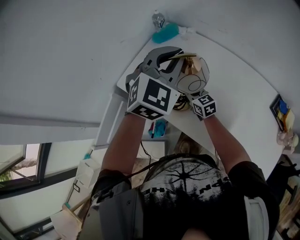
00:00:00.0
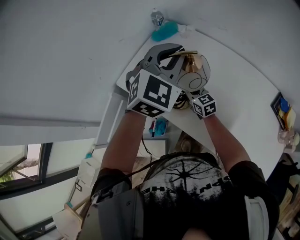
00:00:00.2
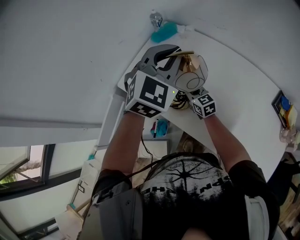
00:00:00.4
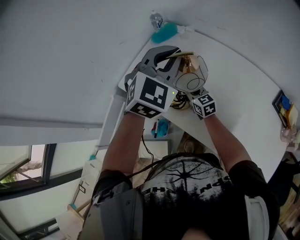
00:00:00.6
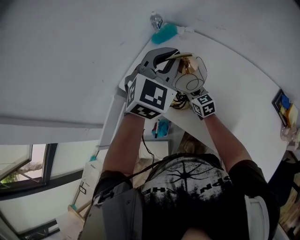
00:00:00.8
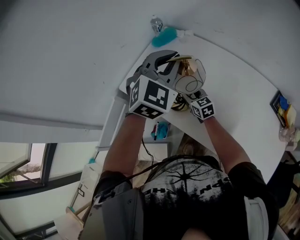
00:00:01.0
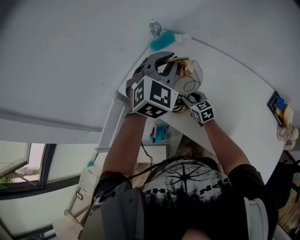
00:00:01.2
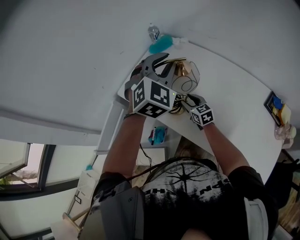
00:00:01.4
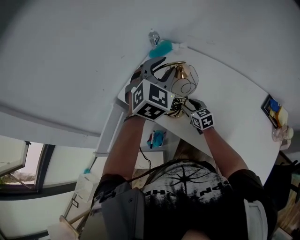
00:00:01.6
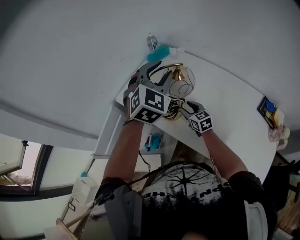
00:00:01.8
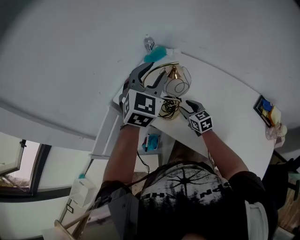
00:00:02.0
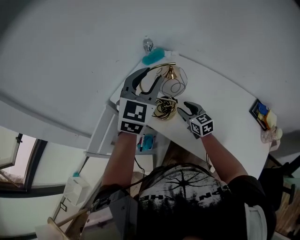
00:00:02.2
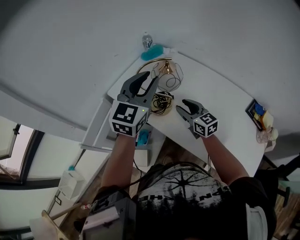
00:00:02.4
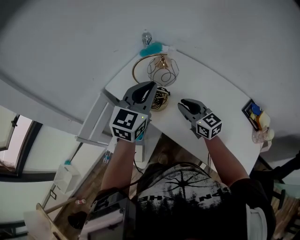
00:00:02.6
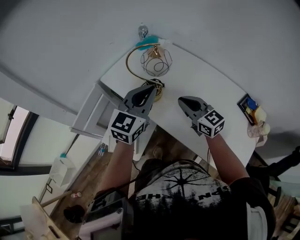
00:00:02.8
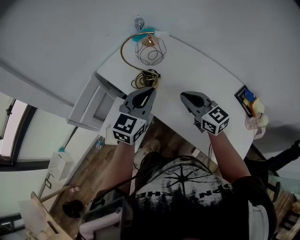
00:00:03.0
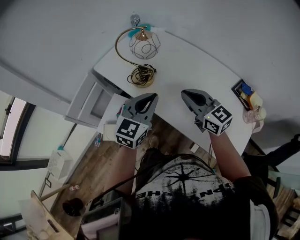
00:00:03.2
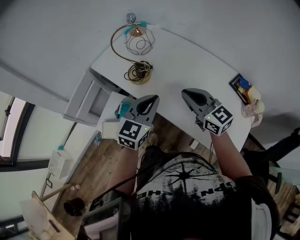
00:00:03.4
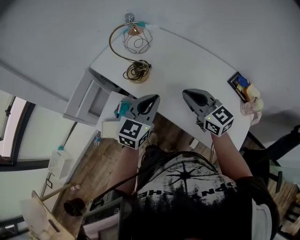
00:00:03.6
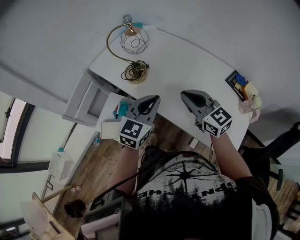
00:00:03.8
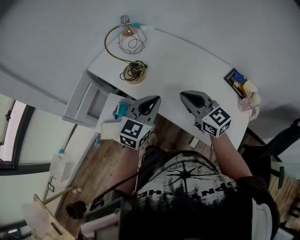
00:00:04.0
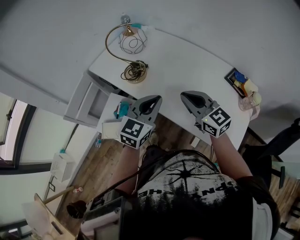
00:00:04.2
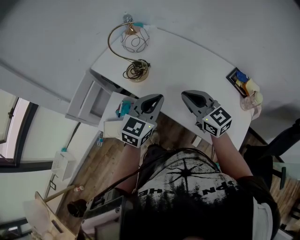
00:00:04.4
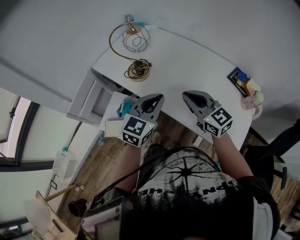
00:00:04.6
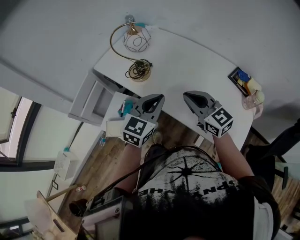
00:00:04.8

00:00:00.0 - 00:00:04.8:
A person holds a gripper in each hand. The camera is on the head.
00:00:00.0 - 00:00:01.6: The left gripper opens up; the right gripper shifts by approximately 5 cm, and opens up.
00:00:01.6 - 00:00:03.2: The left gripper is displaced backward by roughly 25 cm, swivels about 40 degrees, and closes its fingers. Meanwhile the right gripper moves upward, backward and to the right, approximately 35 cm, rotates some 30 degrees, and closes its fingers.
00:00:03.2 - 00:00:04.8: The grippers both shift backward by roughly 5 cm.

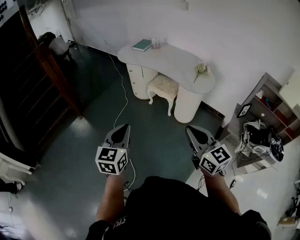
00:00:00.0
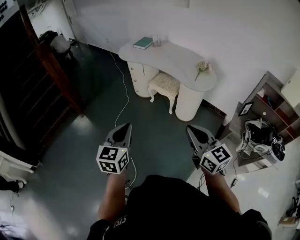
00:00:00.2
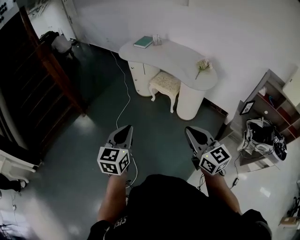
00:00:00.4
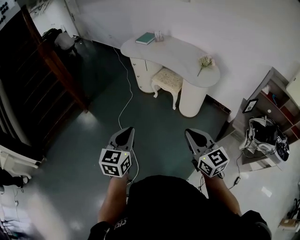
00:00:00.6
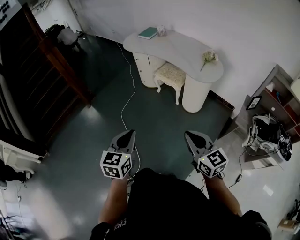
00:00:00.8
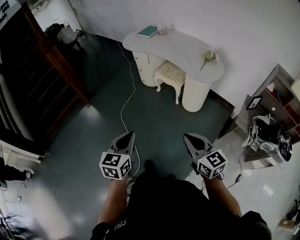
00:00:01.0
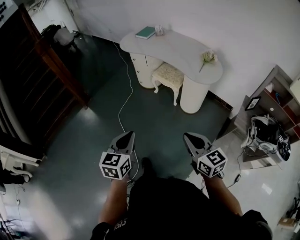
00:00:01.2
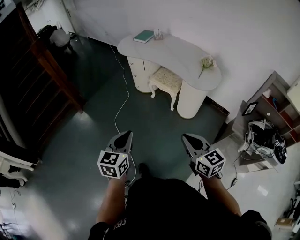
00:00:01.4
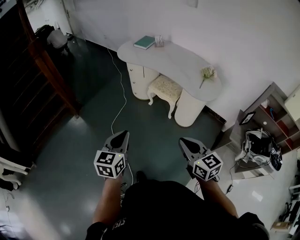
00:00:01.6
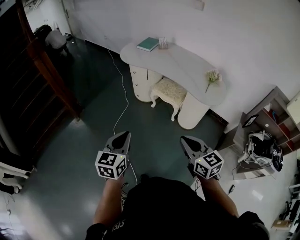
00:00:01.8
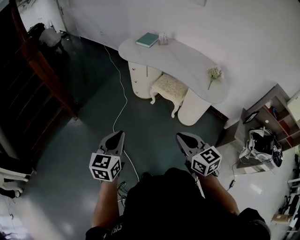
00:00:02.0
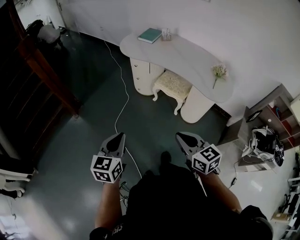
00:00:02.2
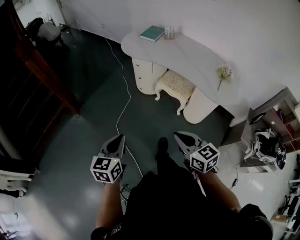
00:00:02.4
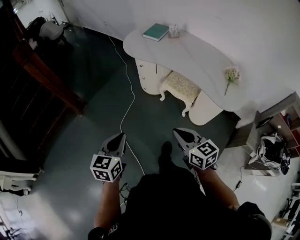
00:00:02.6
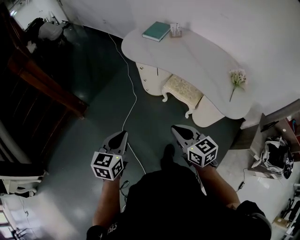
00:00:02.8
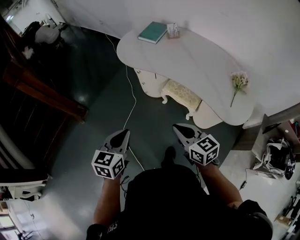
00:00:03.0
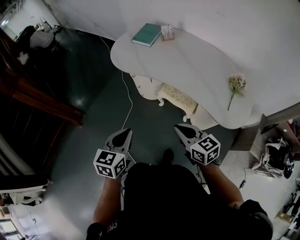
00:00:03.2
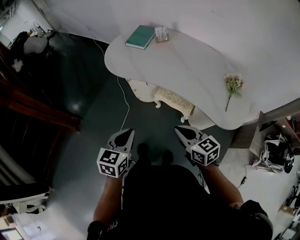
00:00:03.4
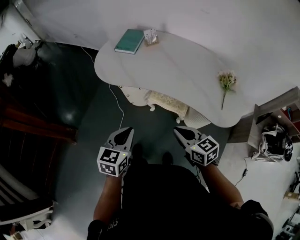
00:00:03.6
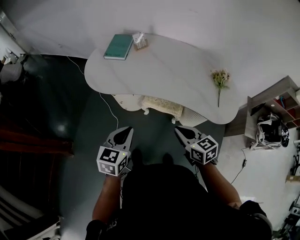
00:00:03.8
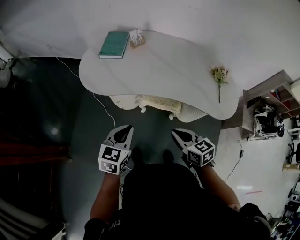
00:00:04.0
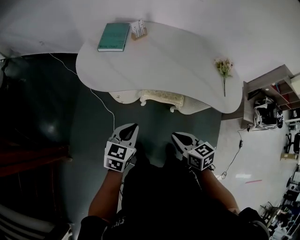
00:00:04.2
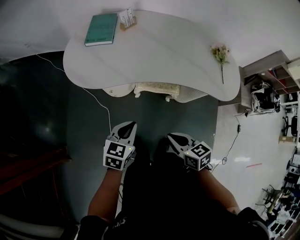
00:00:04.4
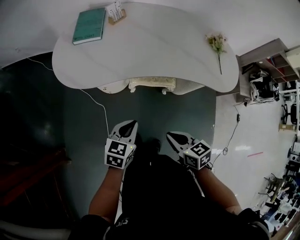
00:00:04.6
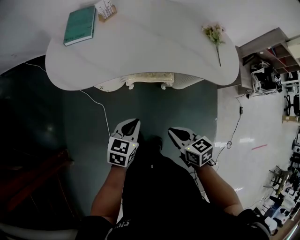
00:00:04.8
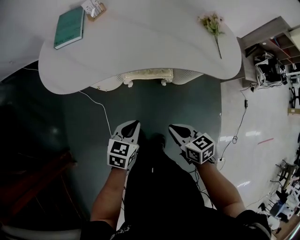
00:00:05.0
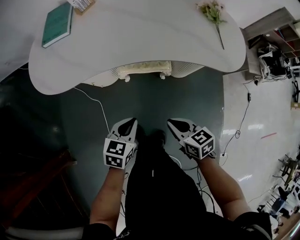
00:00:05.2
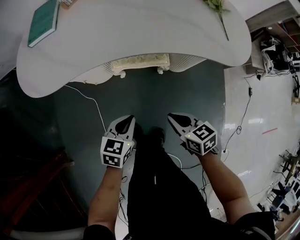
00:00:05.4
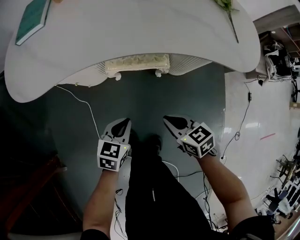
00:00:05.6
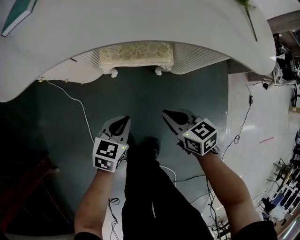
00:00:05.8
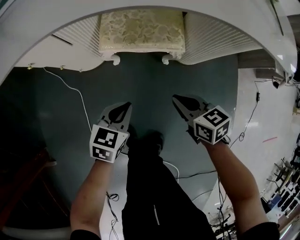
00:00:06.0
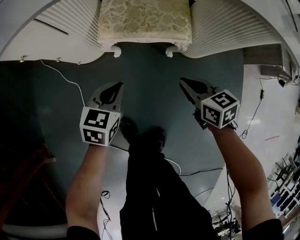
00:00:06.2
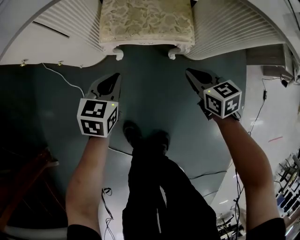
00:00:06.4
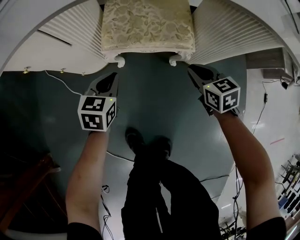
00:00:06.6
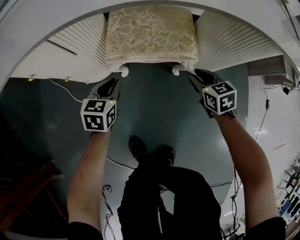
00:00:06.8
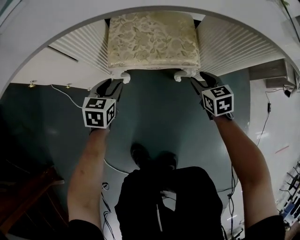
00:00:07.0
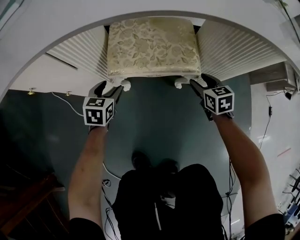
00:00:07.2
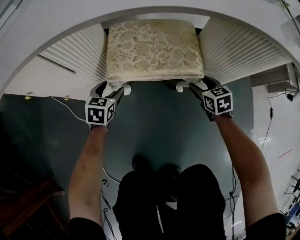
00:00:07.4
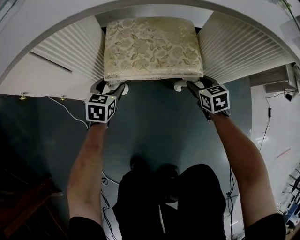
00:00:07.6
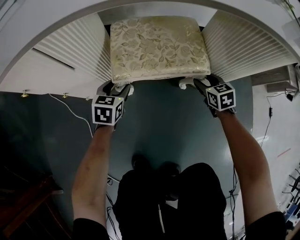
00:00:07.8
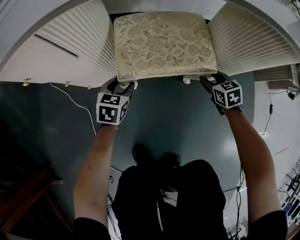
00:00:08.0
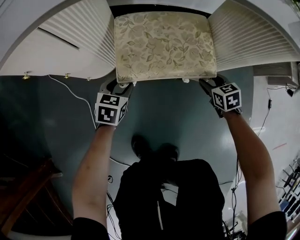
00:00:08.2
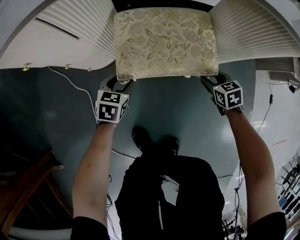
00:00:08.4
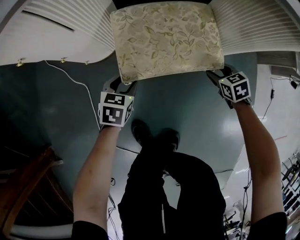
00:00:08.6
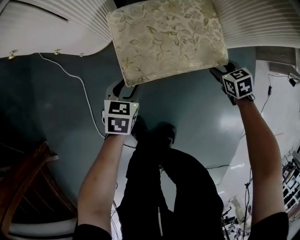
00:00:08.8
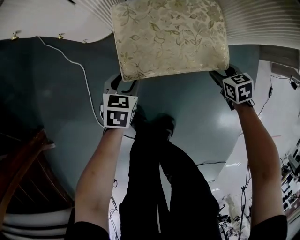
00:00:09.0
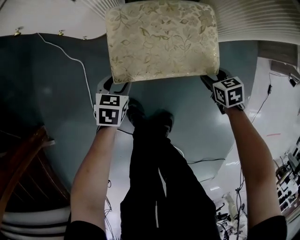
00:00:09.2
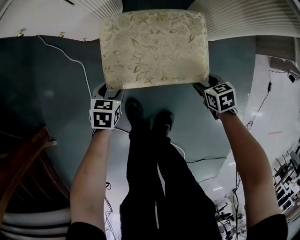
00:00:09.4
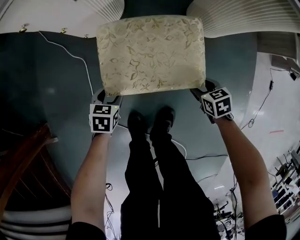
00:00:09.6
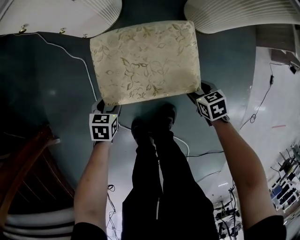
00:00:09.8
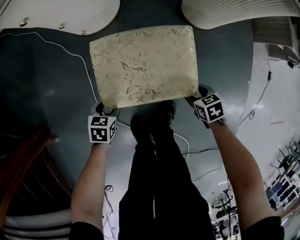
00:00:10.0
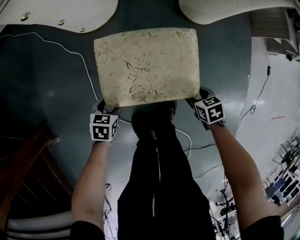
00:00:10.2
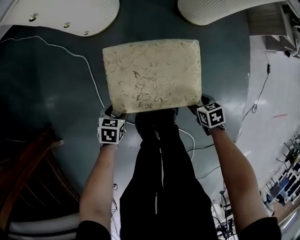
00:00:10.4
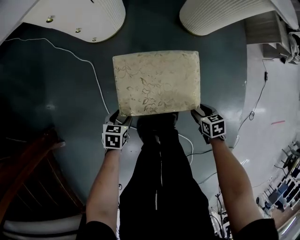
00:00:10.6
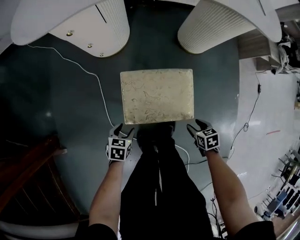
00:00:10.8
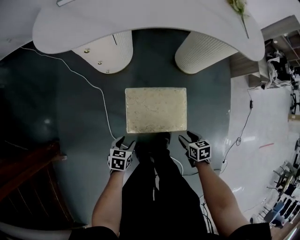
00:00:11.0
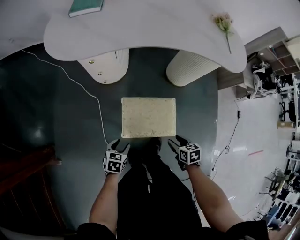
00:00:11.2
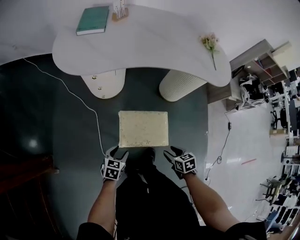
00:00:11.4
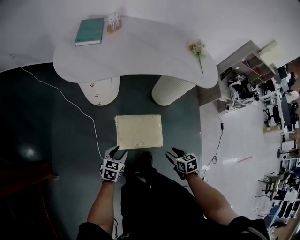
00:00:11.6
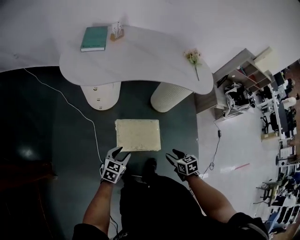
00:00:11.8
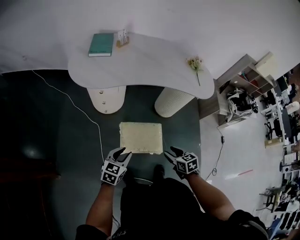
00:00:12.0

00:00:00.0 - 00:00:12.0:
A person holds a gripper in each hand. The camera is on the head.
00:00:00.0 - 00:00:01.6: The grippers both shift forward and downward by roughly 10 cm.
00:00:01.6 - 00:00:03.0: The two grippers go roughly 40 cm forward.
00:00:03.0 - 00:00:04.4: The left gripper moves about 30 cm, and changes its angle by roughly 40 degrees; the right gripper moves roughly 20 cm, and turns by approximately 40 degrees.
00:00:04.4 - 00:00:06.0: Both grippers move downward, approximately 40 cm.
00:00:06.0 - 00:00:07.6: The left gripper travels forward, downward and to the left by approximately 30 cm, and opens. Meanwhile the right gripper is displaced forward, downward and to the right by some 25 cm, turns by some 20 degrees, and opens.
00:00:07.6 - 00:00:09.0: The grippers make only small movements.
00:00:09.0 - 00:00:10.4: The left gripper swivels approximately 20 degrees, while the right gripper rotates approximately 20 degrees.
00:00:10.4 - 00:00:12.0: The grippers both shift upward by some 50 cm. The left gripper tilts its fingers some 40 degrees upward; the right gripper swivels some 20 degrees.

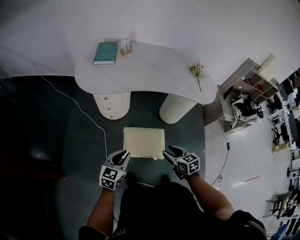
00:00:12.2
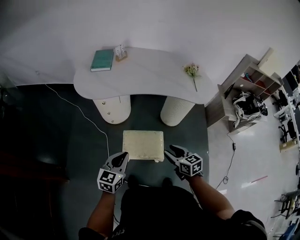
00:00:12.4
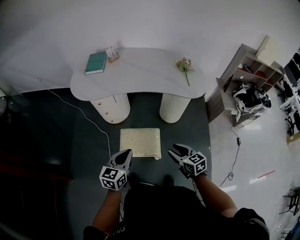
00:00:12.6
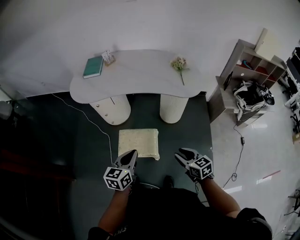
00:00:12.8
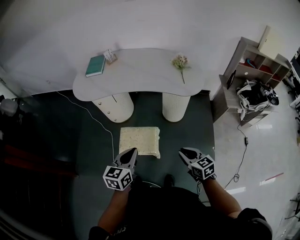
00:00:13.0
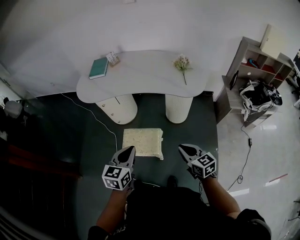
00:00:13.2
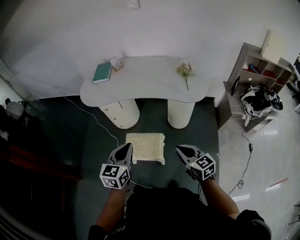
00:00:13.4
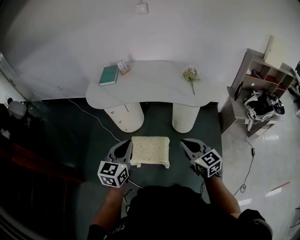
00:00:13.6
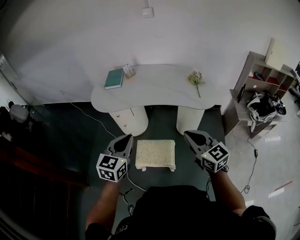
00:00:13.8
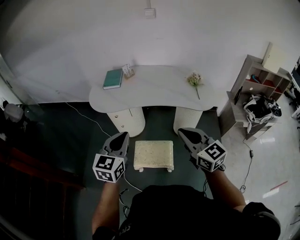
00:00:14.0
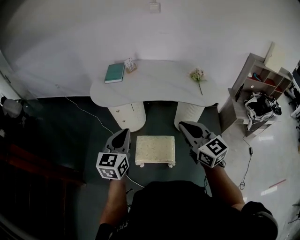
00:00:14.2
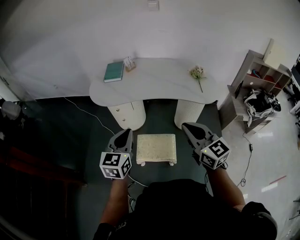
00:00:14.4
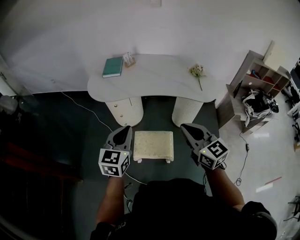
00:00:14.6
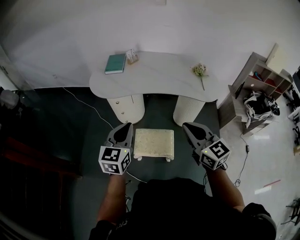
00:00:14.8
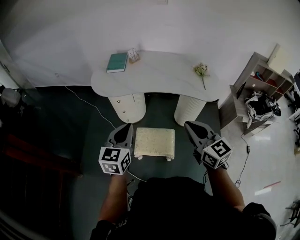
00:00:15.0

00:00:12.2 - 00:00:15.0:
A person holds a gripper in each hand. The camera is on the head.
00:00:12.2 - 00:00:13.6: The left gripper goes about 25 cm upward and to the right. The right gripper travels to the right and upward by roughly 25 cm, rotates roughly 30 degrees, and closes.
00:00:13.6 - 00:00:15.0: The right gripper travels to the left and upward by roughly 15 cm. Meanwhile the left gripper travels to the left by some 10 cm.

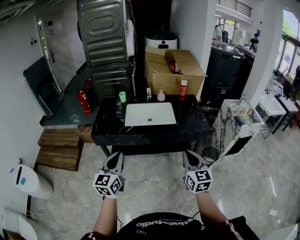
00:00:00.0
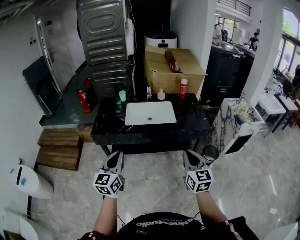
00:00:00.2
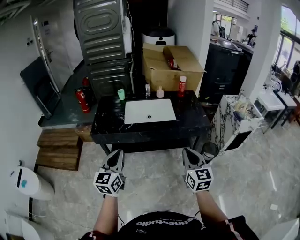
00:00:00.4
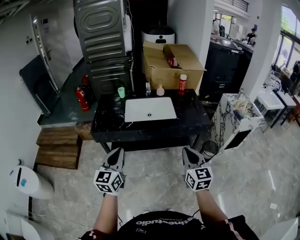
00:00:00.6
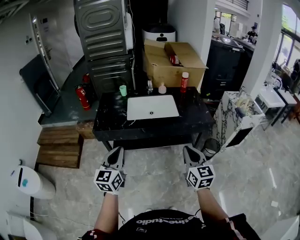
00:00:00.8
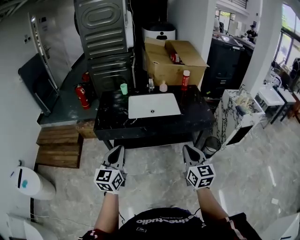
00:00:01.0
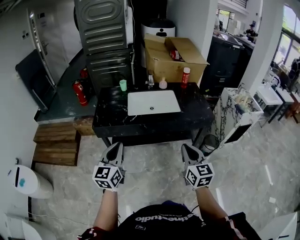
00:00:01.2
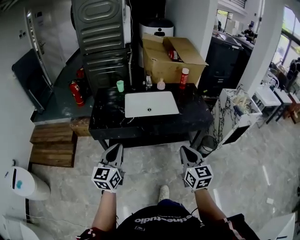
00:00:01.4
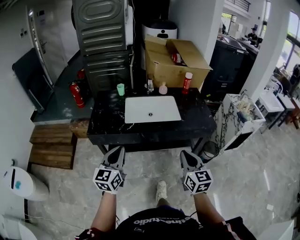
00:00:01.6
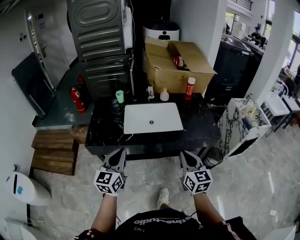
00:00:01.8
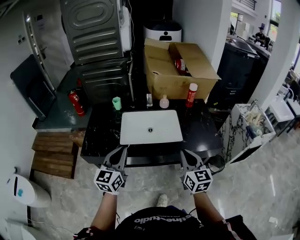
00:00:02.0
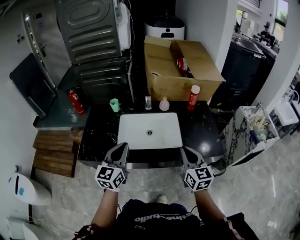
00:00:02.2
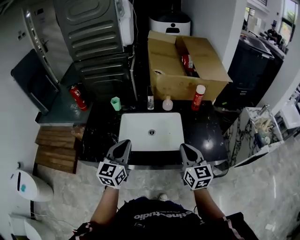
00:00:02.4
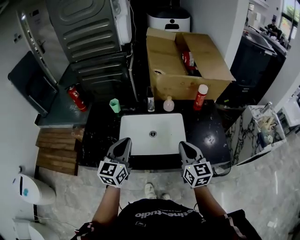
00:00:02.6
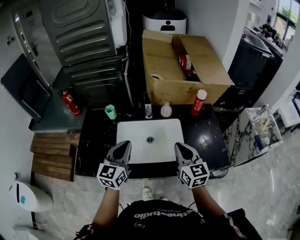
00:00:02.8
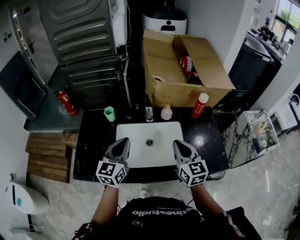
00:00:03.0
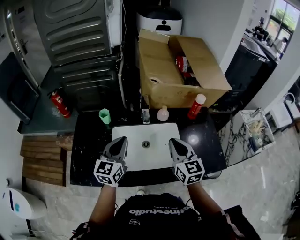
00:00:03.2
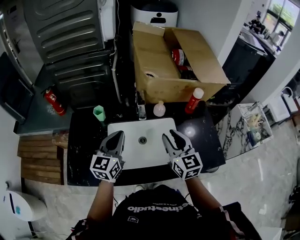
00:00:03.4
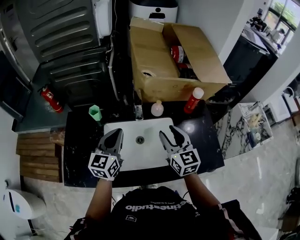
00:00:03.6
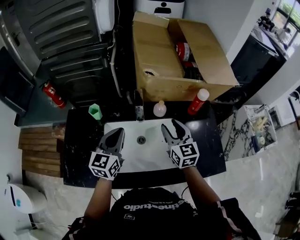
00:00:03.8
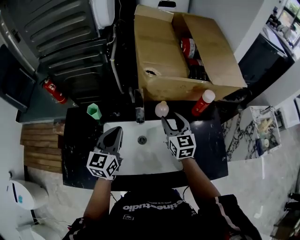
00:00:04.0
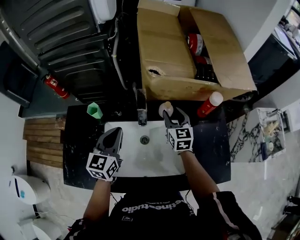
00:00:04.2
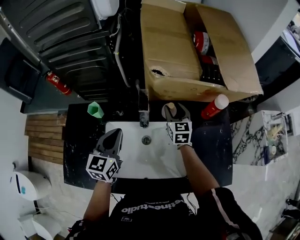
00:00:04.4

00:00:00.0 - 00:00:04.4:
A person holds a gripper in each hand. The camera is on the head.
00:00:00.0 - 00:00:01.4: Both grippers travel together to the left, about 5 cm.
00:00:01.4 - 00:00:03.0: The two grippers travel together, forward, roughly 50 cm.
00:00:03.0 - 00:00:04.4: The right gripper heads forward and downward, covering approximately 35 cm, and opens. Meanwhile the left gripper heads forward and downward, covering approximately 15 cm.
